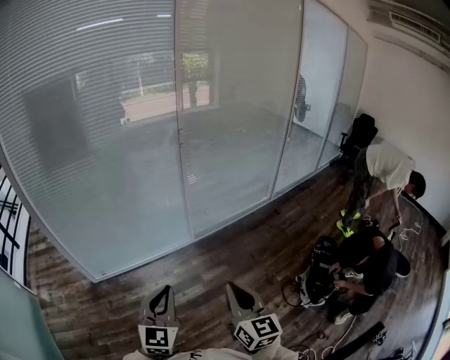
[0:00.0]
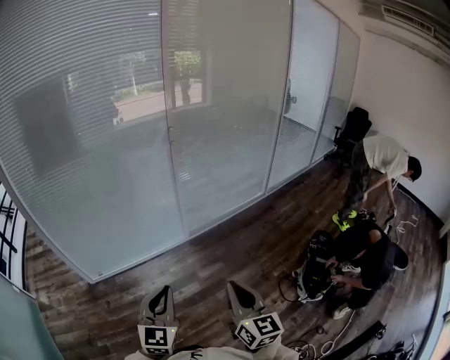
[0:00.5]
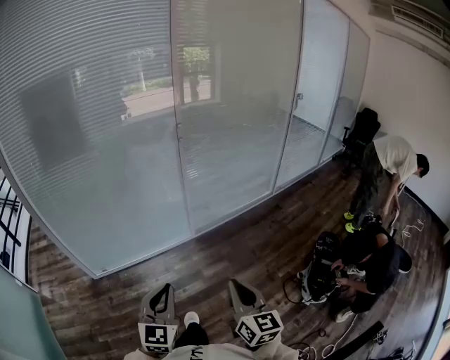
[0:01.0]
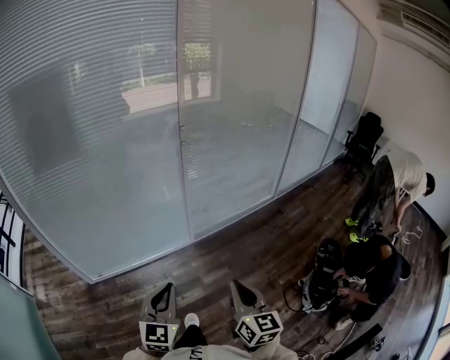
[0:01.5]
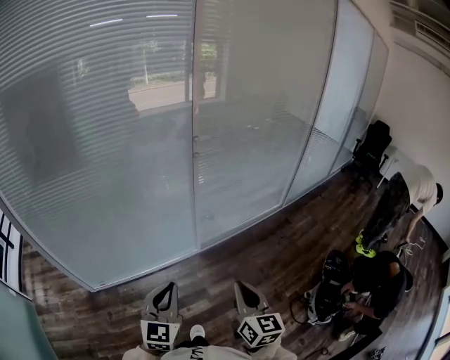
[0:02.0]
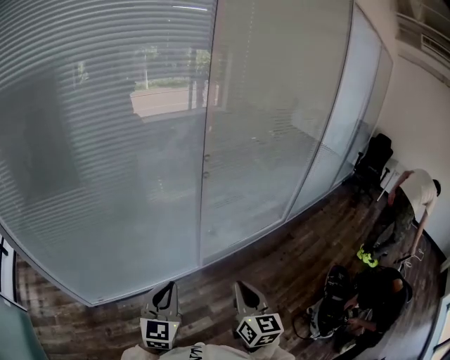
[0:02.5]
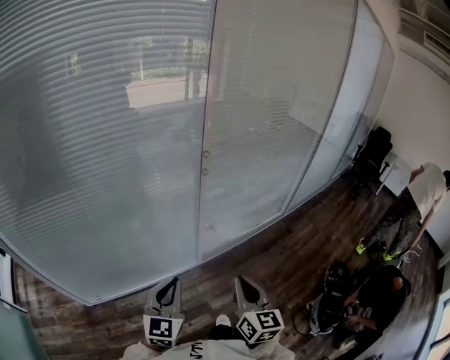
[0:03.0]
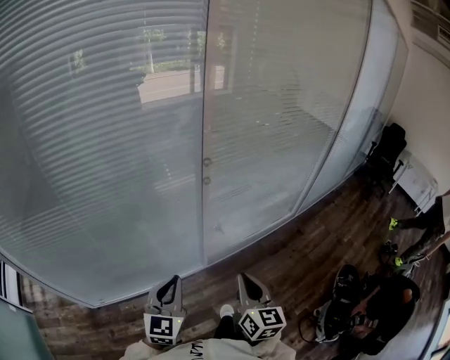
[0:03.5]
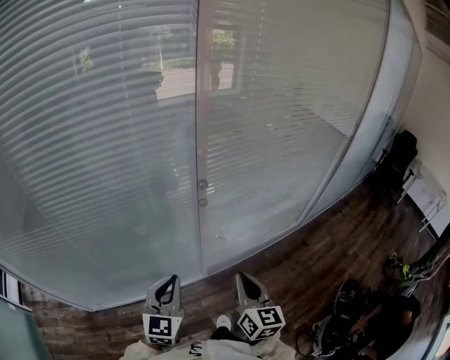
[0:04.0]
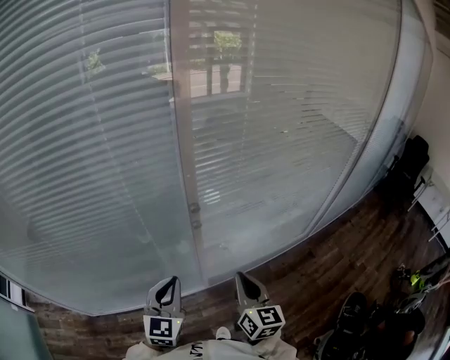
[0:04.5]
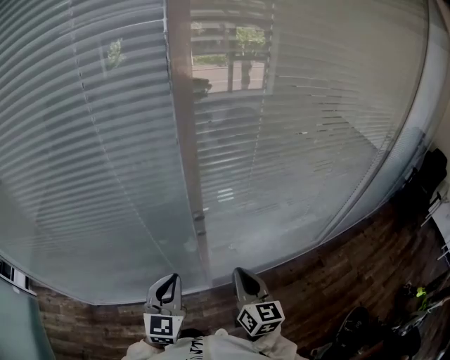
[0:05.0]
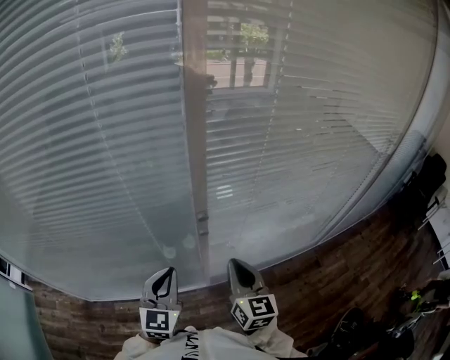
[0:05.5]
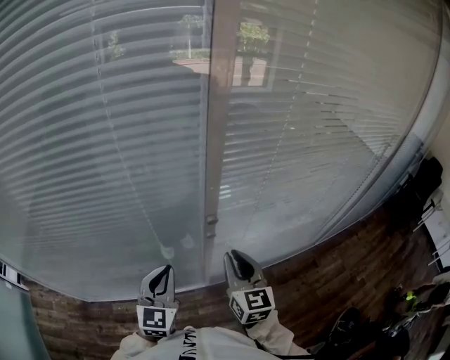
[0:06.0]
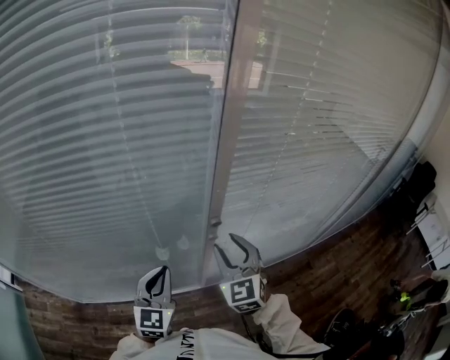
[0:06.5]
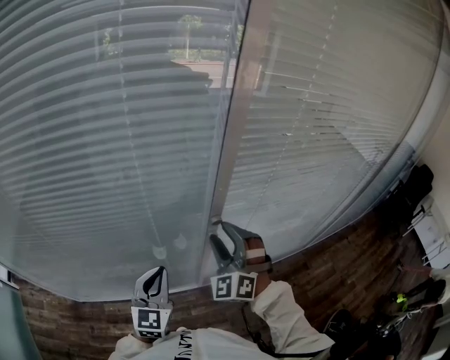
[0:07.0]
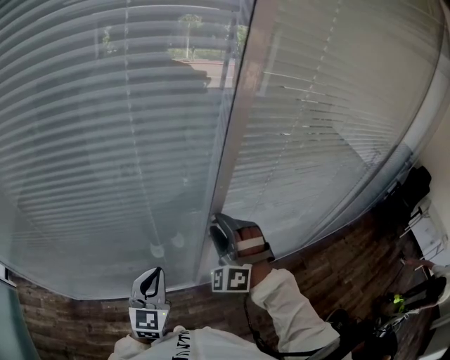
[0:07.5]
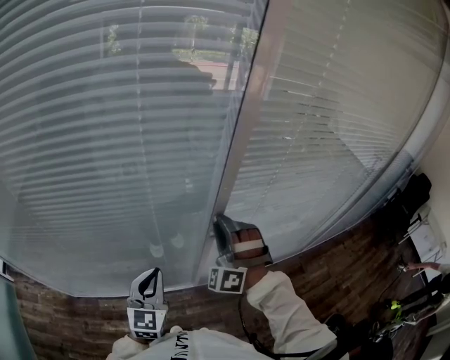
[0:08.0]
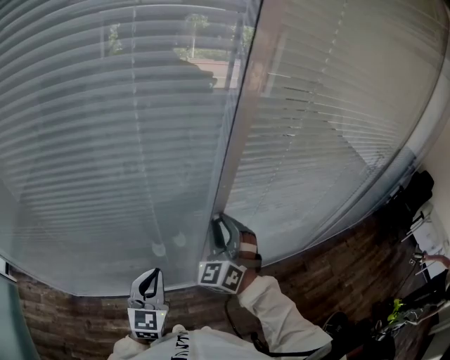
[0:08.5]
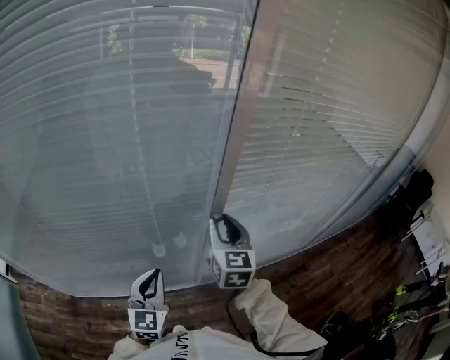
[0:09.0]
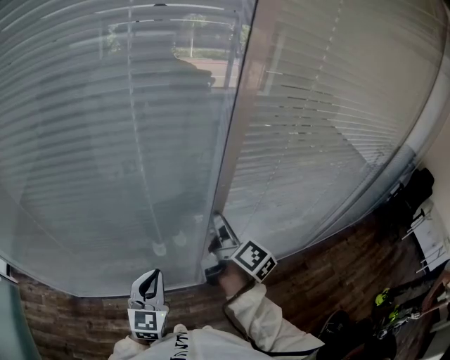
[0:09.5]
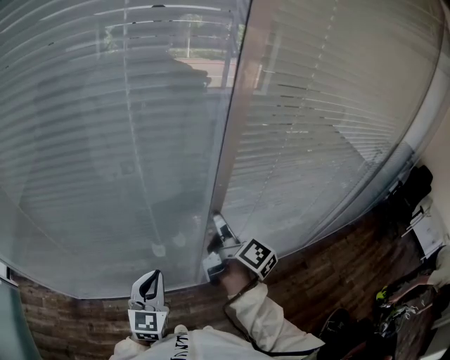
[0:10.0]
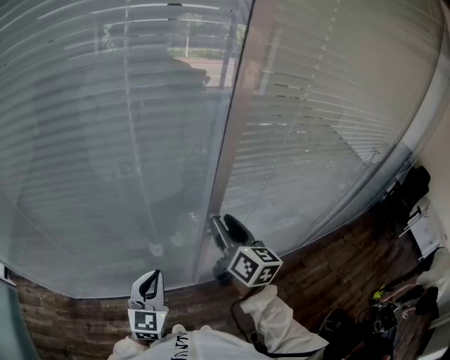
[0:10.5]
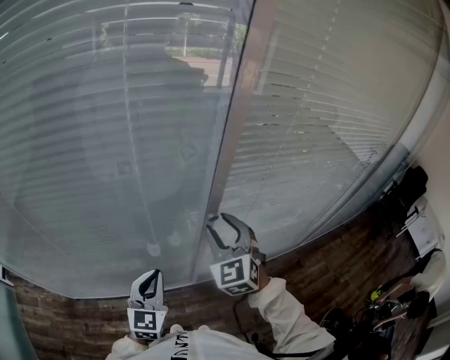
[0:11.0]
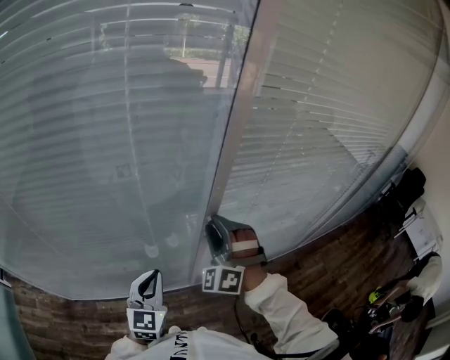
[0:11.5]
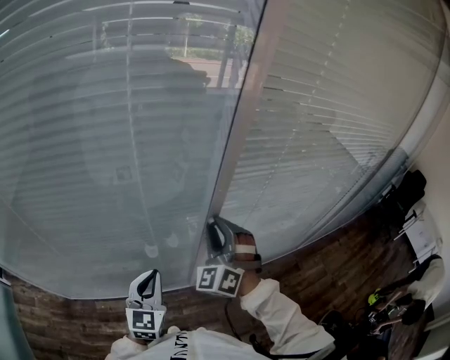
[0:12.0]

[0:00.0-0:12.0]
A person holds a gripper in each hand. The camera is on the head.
0:00.0 to 0:02.0: The grippers both shift forward by about 15 cm.
0:02.0 to 0:04.0: Both grippers travel together forward, about 25 cm.
0:04.0 to 0:06.0: The left gripper moves forward, approximately 10 cm; the right gripper moves forward, about 15 cm.
0:06.0 to 0:08.0: The right gripper goes approximately 10 cm forward and to the left, twists about 90 degrees counterclockwise, seen from behind, and opens, then closes again.
0:08.0 to 0:10.0: The right gripper rolls clockwise, seen from behind, by approximately 150 degrees.
0:10.0 to 0:12.0: The right gripper twists about 130 degrees counterclockwise, seen from behind.

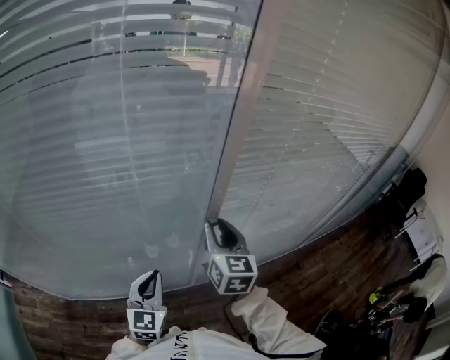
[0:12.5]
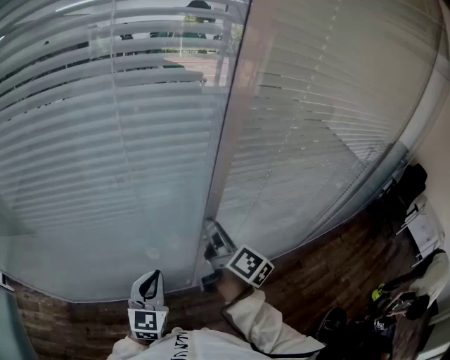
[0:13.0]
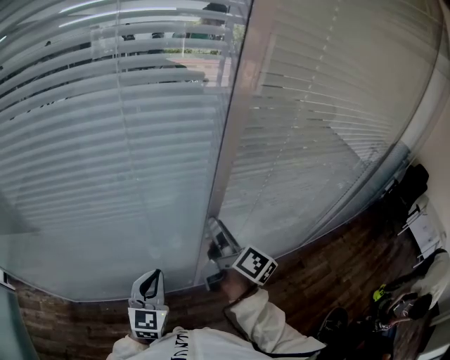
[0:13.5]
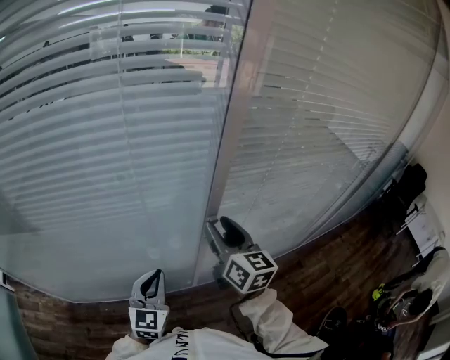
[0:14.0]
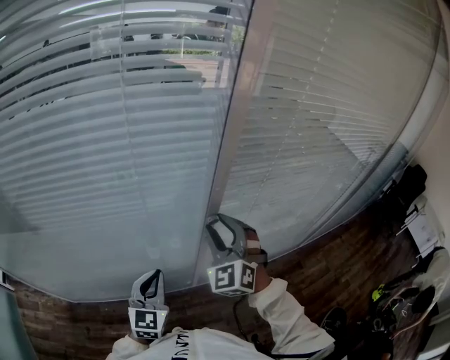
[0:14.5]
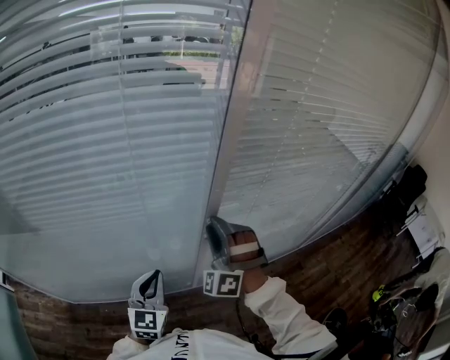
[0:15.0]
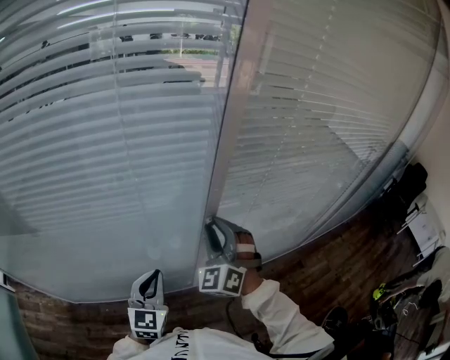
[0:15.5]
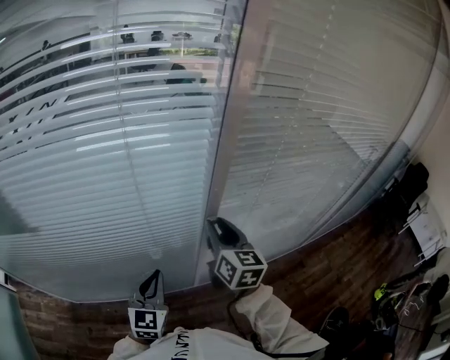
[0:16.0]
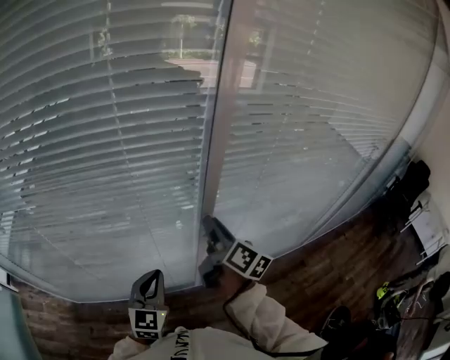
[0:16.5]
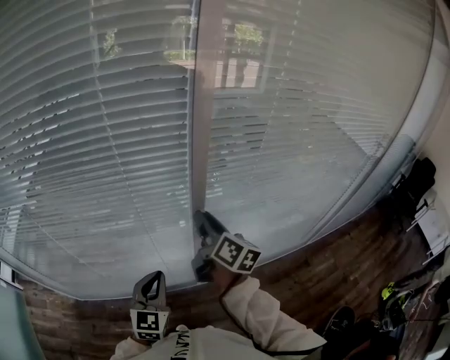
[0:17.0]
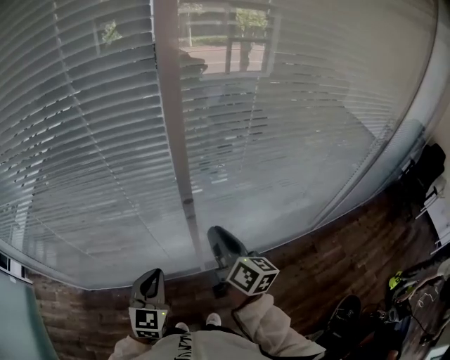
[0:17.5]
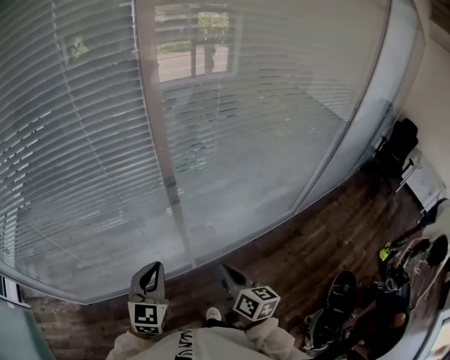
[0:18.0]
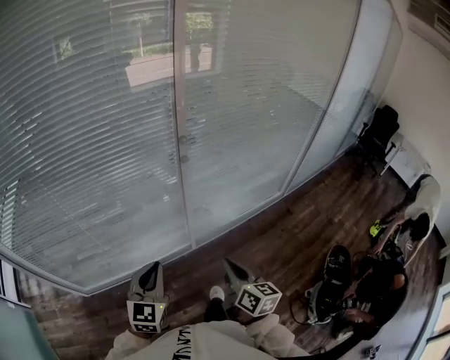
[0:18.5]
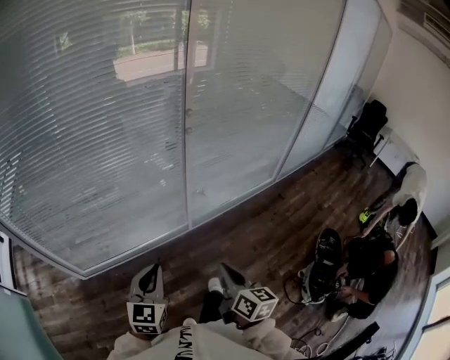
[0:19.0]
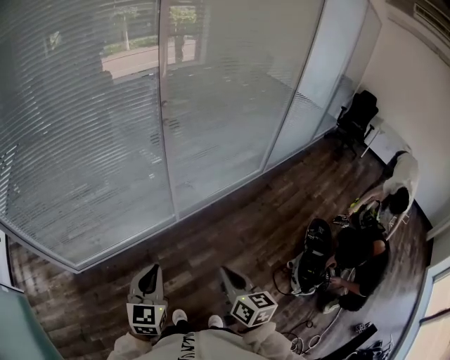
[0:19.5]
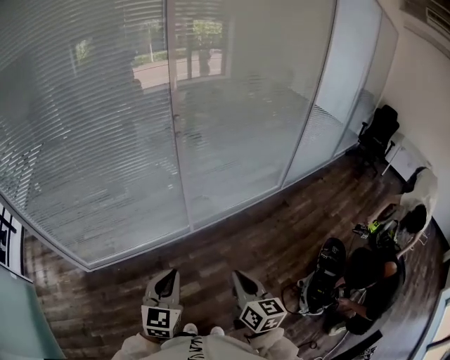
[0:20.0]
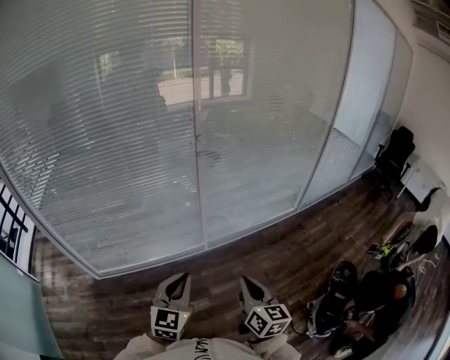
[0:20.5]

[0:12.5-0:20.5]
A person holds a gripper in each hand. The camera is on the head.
0:12.5 to 0:14.5: The right gripper twists about 60 degrees counterclockwise, seen from behind.
0:14.5 to 0:16.5: The right gripper rotates around the line of its fingers by about 100 degrees, clockwise from behind.
0:16.5 to 0:18.5: The right gripper shifts about 35 cm backward, changes its angle by about 20 degrees, and closes. Meanwhile the left gripper goes approximately 20 cm backward.
0:18.5 to 0:20.5: The left gripper shifts some 15 cm backward and to the right, while the right gripper moves backward, approximately 15 cm.

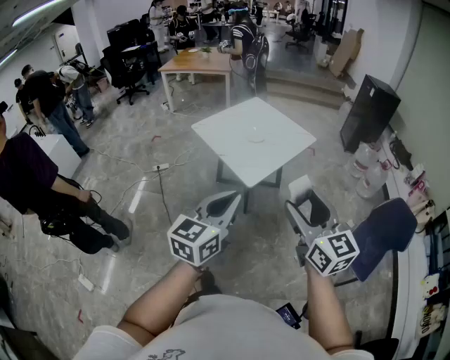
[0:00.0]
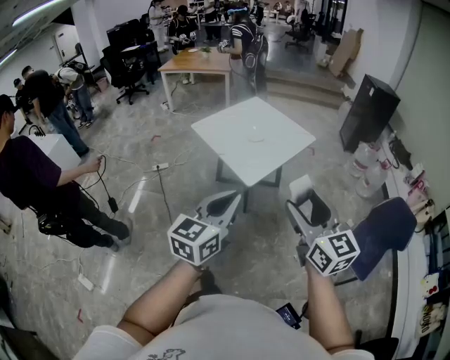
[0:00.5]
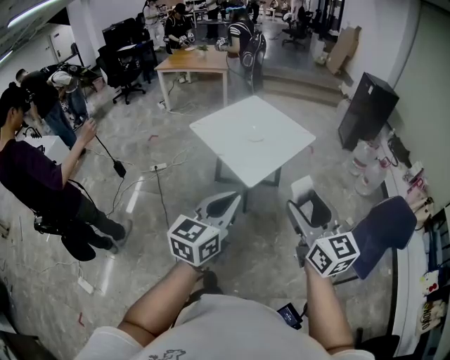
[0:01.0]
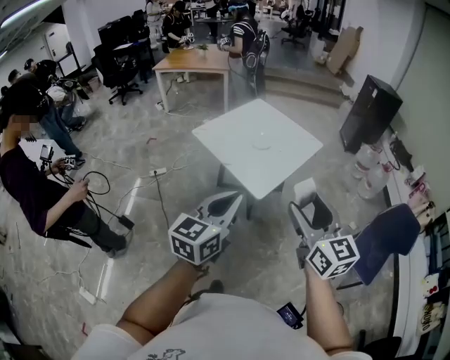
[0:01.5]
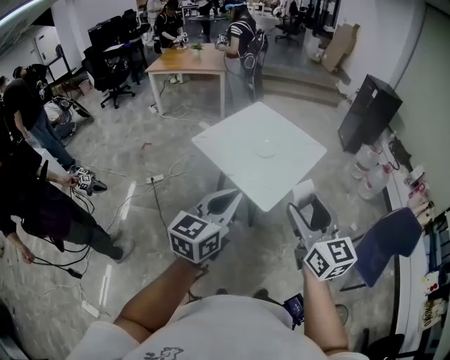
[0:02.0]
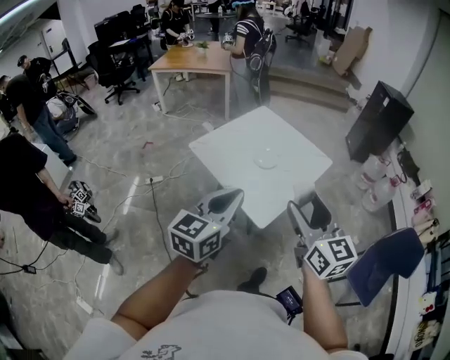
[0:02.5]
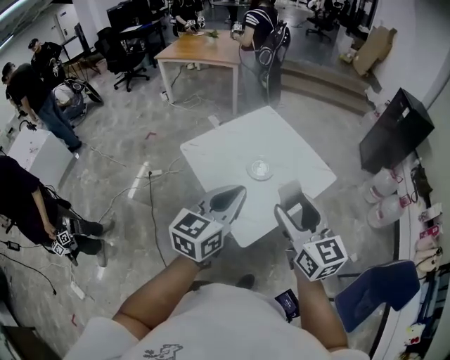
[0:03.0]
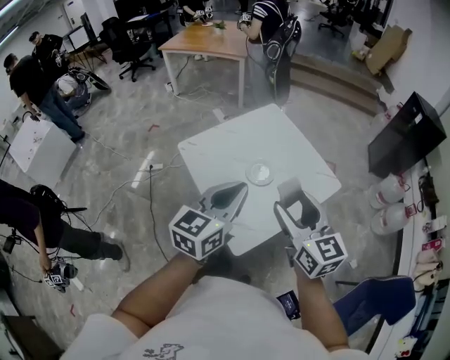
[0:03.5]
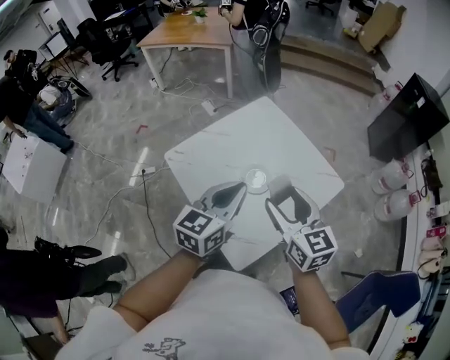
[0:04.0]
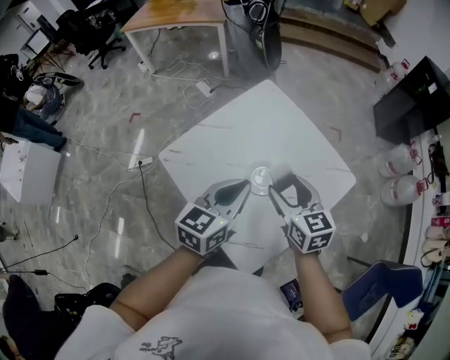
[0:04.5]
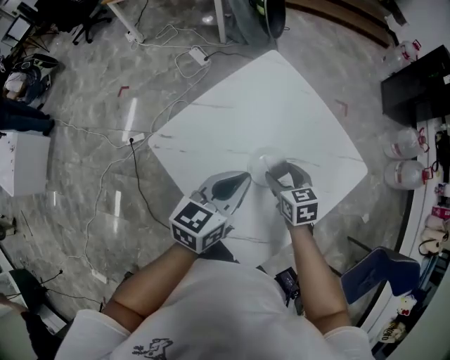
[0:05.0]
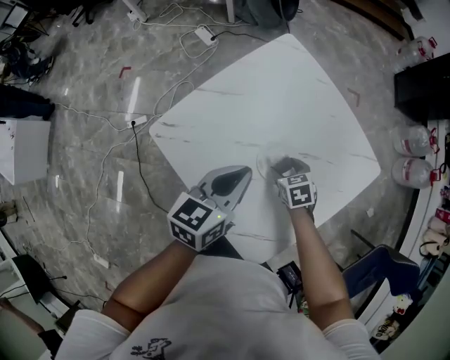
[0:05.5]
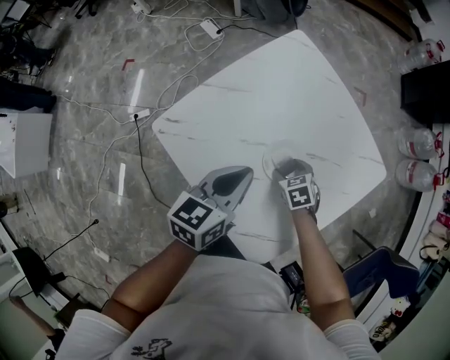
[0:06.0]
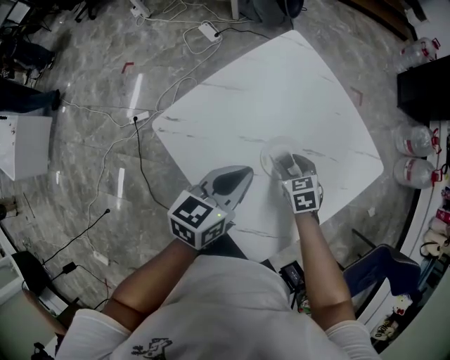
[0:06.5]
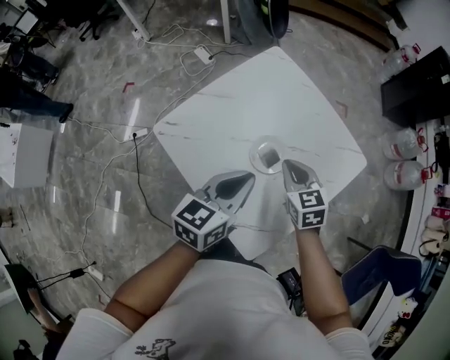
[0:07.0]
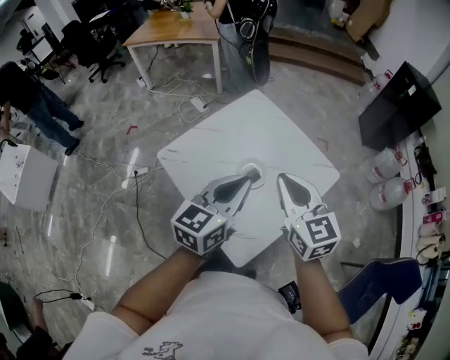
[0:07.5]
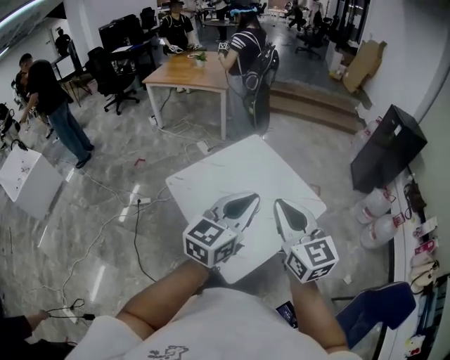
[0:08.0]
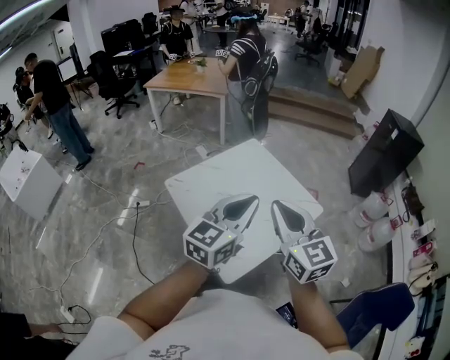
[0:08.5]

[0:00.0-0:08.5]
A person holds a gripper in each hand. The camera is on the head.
0:00.0 to 0:02.0: Both grippers move forward and to the left, approximately 25 cm.
0:02.0 to 0:04.0: The pair of grippers is taken forward, about 50 cm.
0:04.0 to 0:06.5: The right gripper goes roughly 40 cm downward and forward, and angles its fingers downward, by approximately 40 degrees. Meanwhile the left gripper travels downward, forward and to the left by approximately 30 cm, and changes its angle by approximately 20 degrees.
0:06.5 to 0:08.5: The right gripper moves upward and backward, about 60 cm, angles its fingers upward, by about 50 degrees, and closes its fingers. Meanwhile the left gripper is displaced upward, backward and to the right by about 50 cm, and changes its angle by about 30 degrees.
